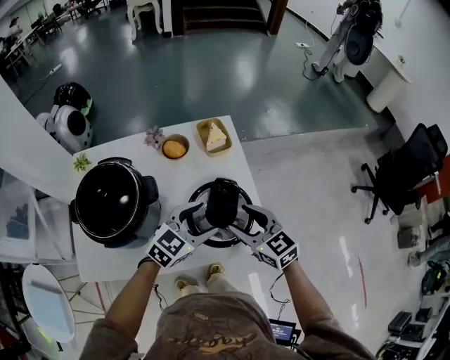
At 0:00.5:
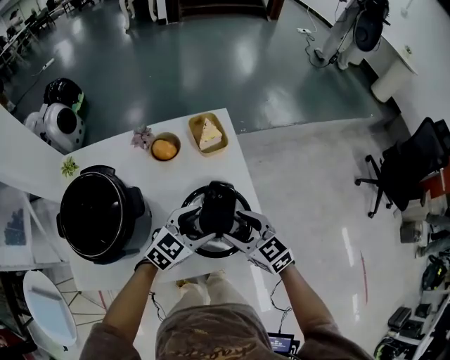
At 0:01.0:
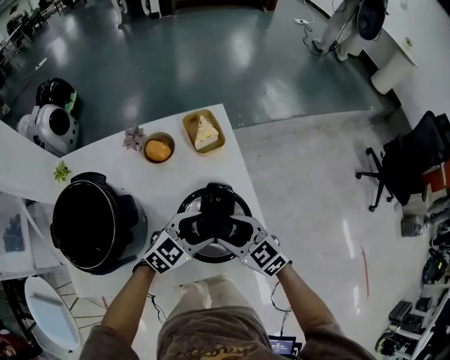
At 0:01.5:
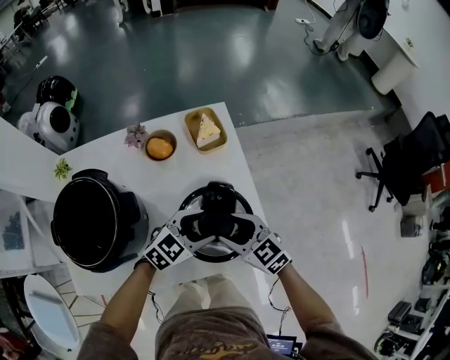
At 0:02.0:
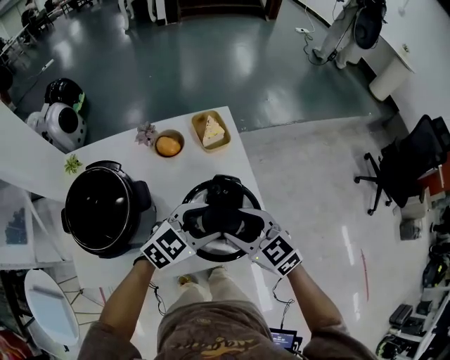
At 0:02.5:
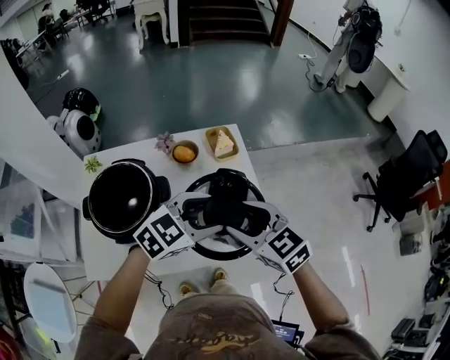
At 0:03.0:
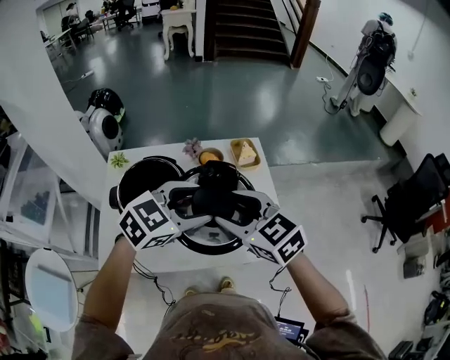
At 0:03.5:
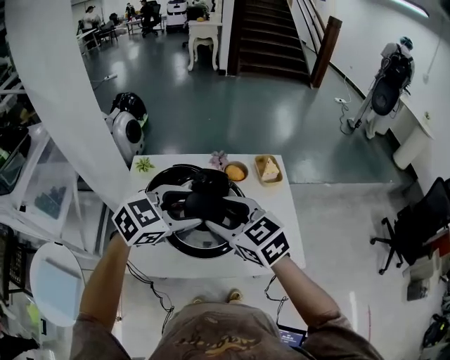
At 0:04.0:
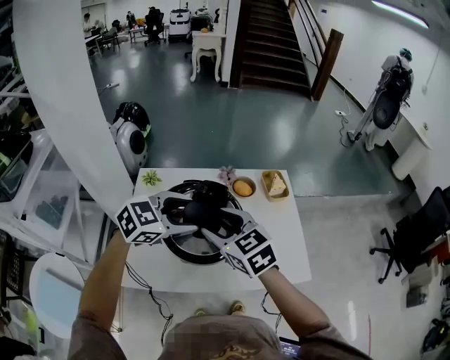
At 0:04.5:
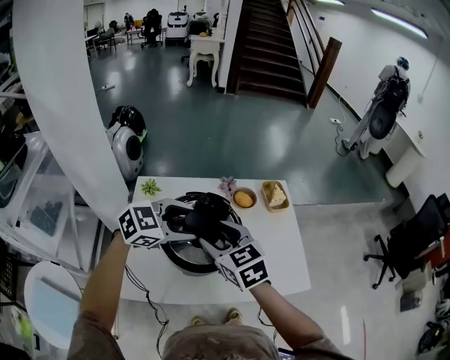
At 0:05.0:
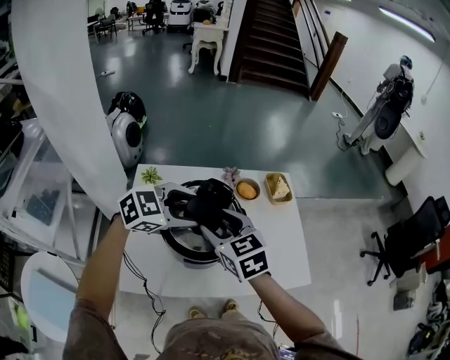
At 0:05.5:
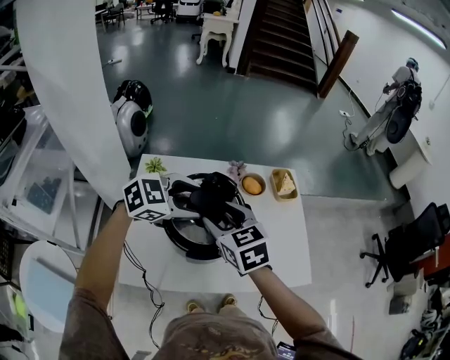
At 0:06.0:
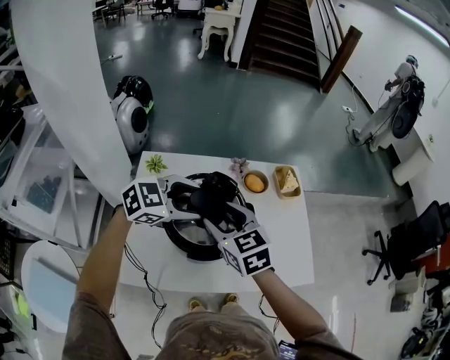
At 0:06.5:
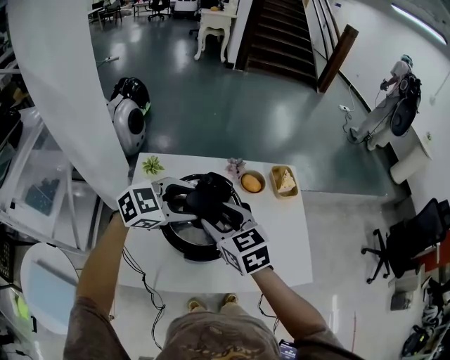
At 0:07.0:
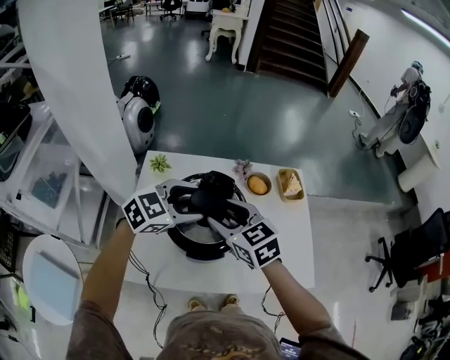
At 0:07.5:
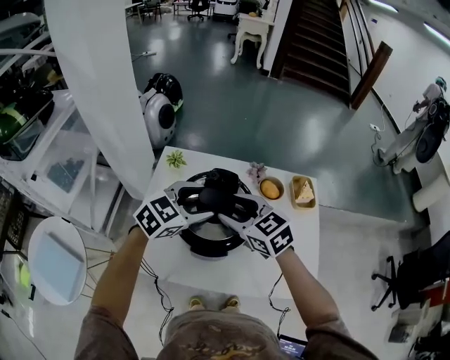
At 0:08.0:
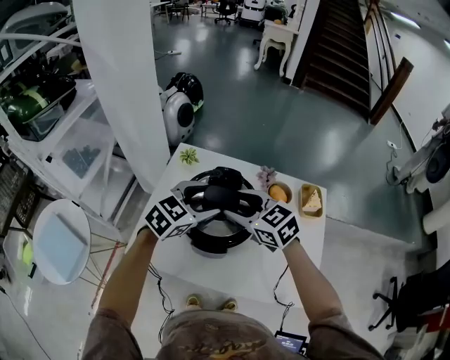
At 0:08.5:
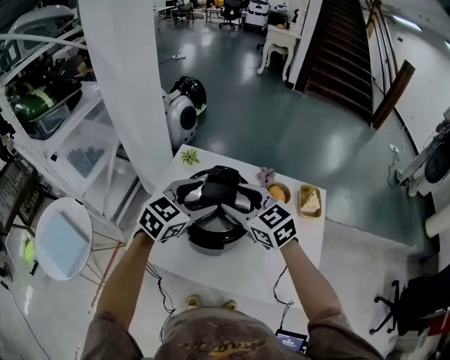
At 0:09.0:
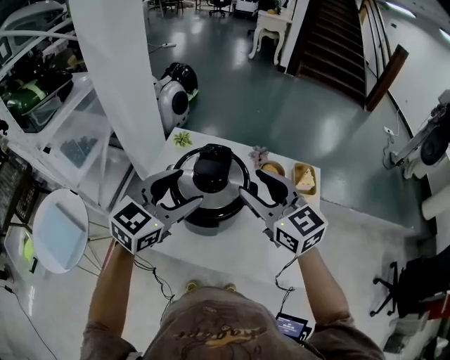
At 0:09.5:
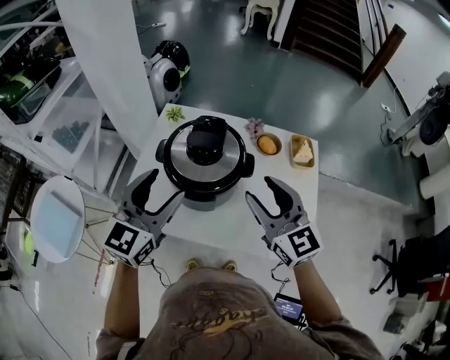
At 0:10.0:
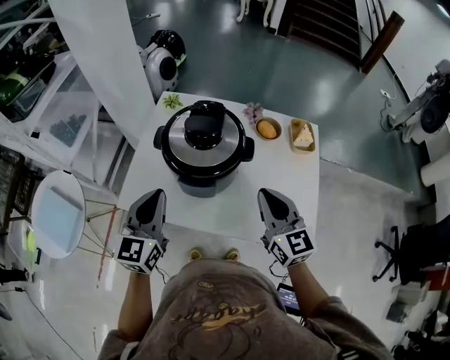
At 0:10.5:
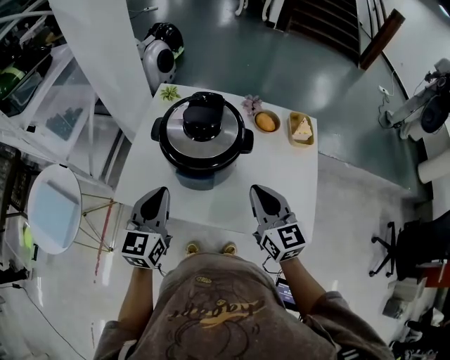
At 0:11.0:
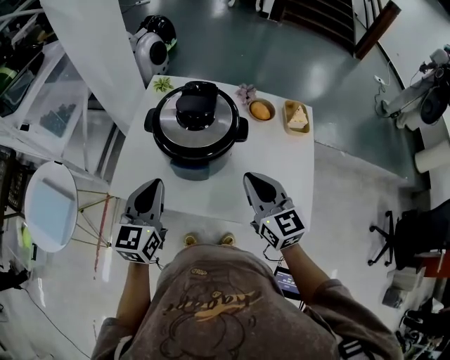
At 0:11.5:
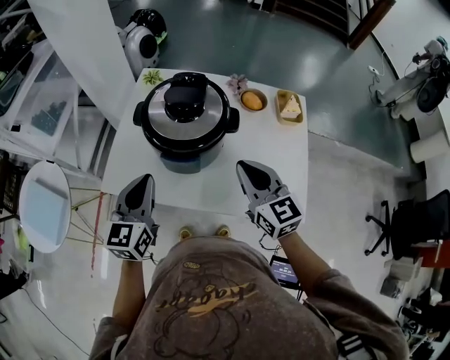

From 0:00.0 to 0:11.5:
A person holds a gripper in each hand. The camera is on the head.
From 0:00.0 to 0:02.0: The left gripper goes downward and returns, roughly 10 cm each way. The right gripper reaches some 10 cm downward, then returns.
From 0:02.0 to 0:04.0: The two grippers go some 30 cm to the left and upward.
From 0:04.0 to 0:06.0: The left gripper changes place by some 10 cm; the right gripper shifts by approximately 10 cm.
From 0:06.0 to 0:07.5: The right gripper swivels some 20 degrees. Meanwhile the left gripper turns by roughly 30 degrees.
From 0:07.5 to 0:09.5: The right gripper heads backward, to the right and upward, covering some 15 cm, and swivels about 30 degrees. The left gripper heads backward, to the left and upward, covering approximately 15 cm, and changes its angle by roughly 40 degrees.
From 0:09.5 to 0:11.5: The two grippers go about 10 cm downward. The right gripper closes its fingers. The left gripper closes up.

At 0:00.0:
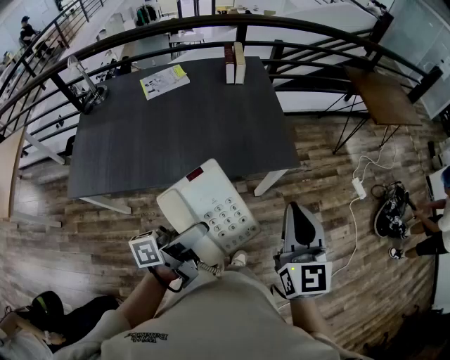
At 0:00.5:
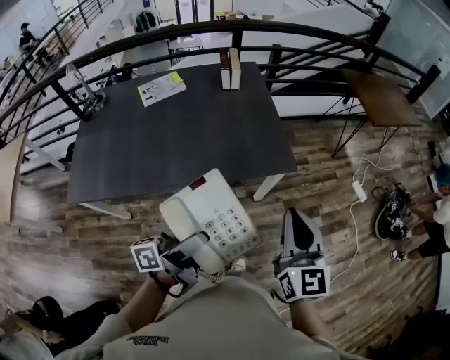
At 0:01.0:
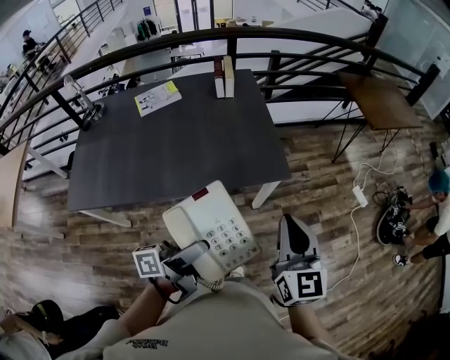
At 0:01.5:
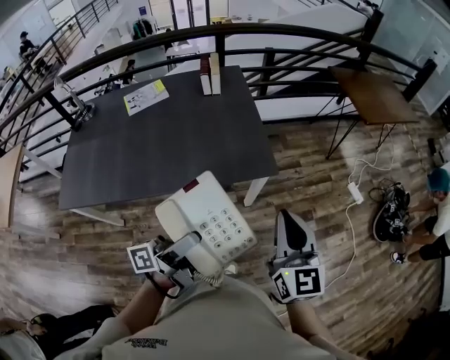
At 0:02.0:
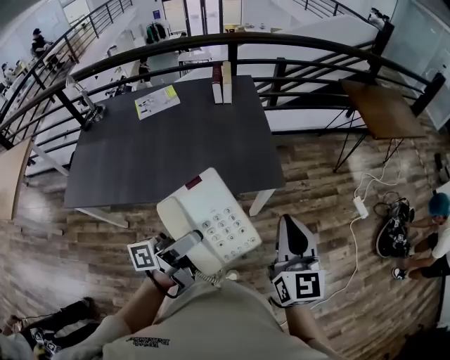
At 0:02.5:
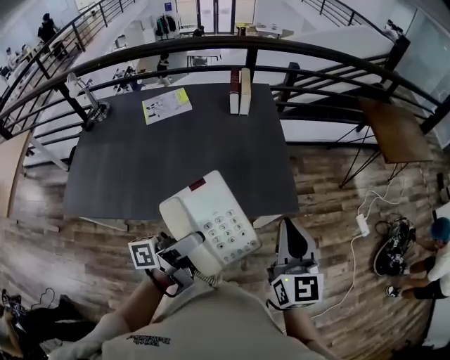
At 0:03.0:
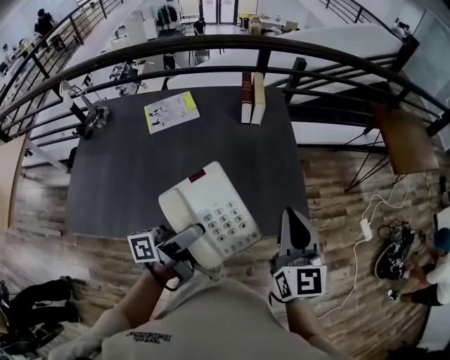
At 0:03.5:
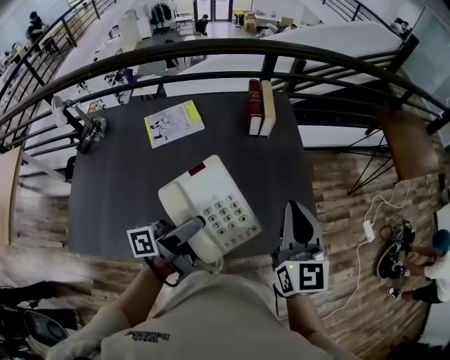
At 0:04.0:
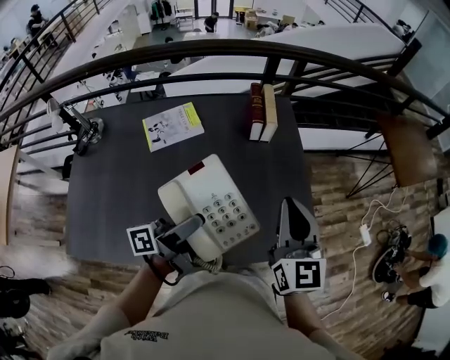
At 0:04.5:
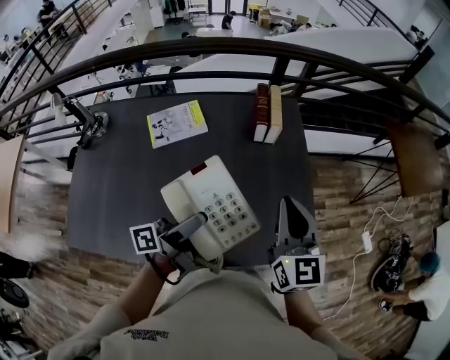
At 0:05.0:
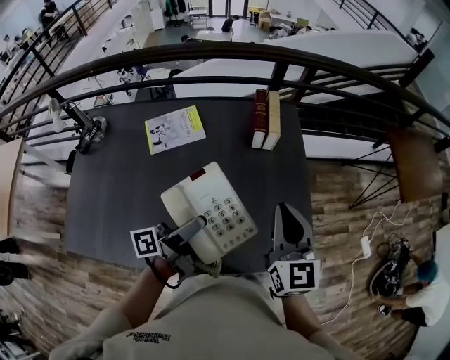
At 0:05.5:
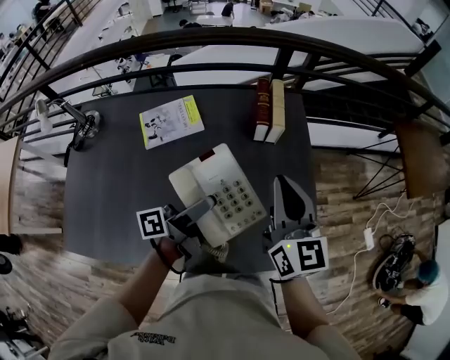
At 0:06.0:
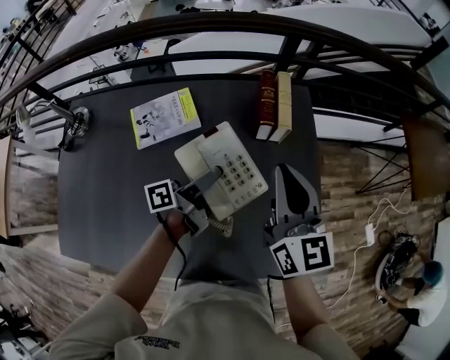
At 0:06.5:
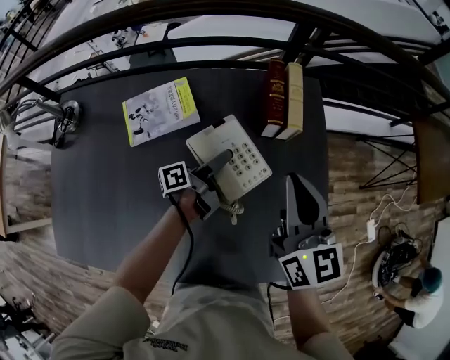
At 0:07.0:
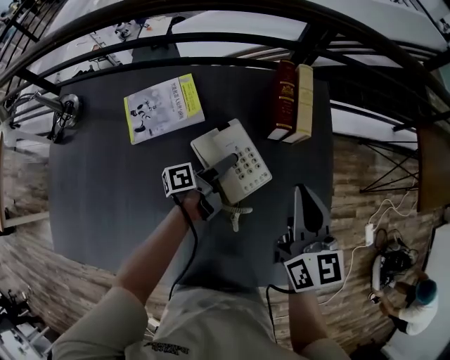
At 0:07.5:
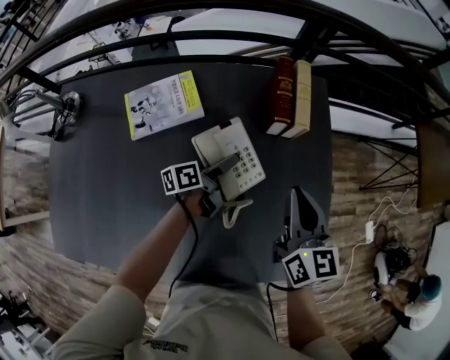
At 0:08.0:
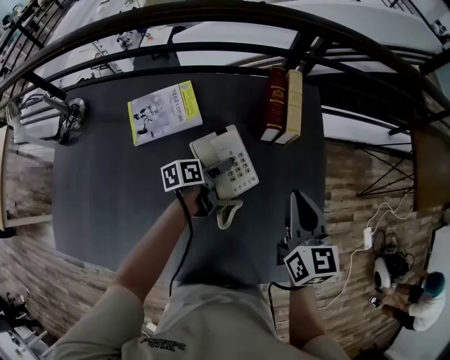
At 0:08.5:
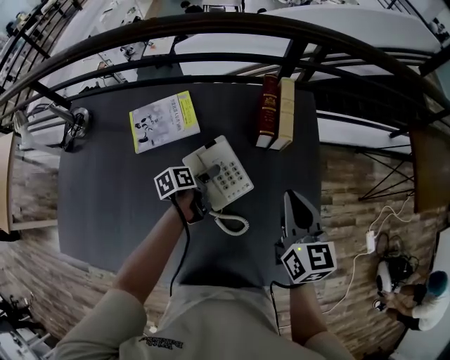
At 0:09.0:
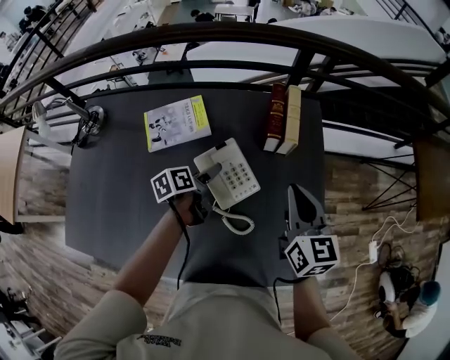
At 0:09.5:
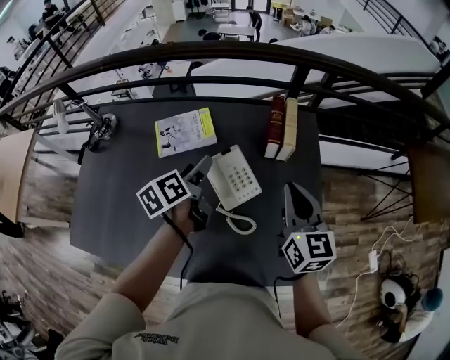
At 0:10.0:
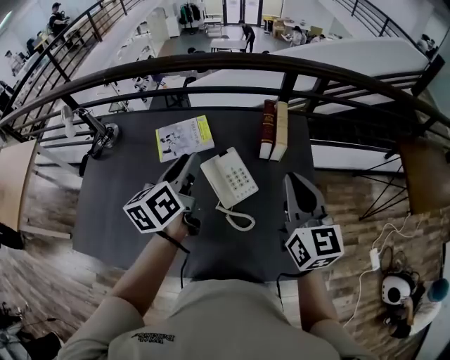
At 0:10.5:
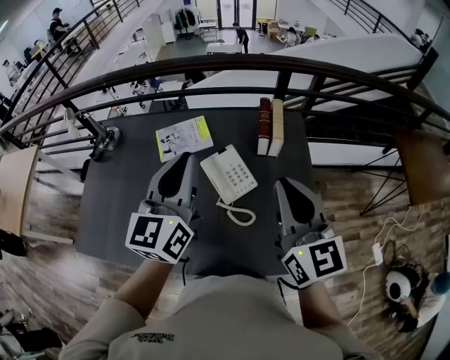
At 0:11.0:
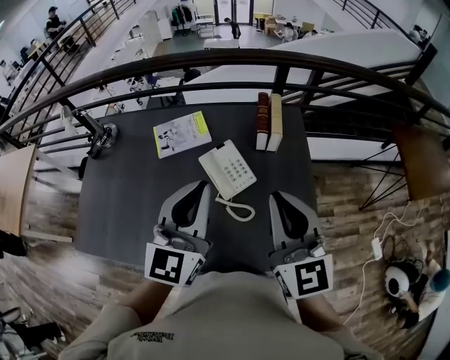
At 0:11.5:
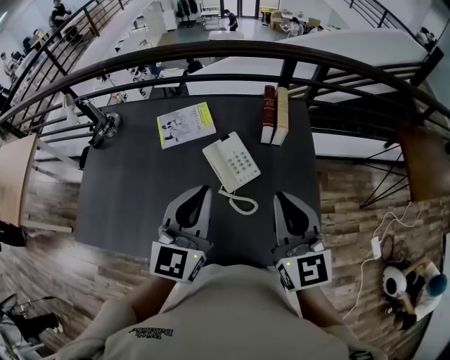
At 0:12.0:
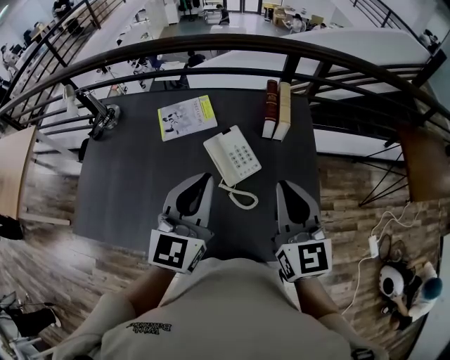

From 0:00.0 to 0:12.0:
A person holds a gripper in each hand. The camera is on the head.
From 0:00.0 to 0:02.0: The two grippers go approximately 10 cm to the right and forward.
From 0:02.0 to 0:04.0: The two grippers travel together, forward and to the left, roughly 40 cm.
From 0:04.0 to 0:06.0: The right gripper travels forward by some 15 cm; the left gripper shifts approximately 25 cm forward and downward.
From 0:06.0 to 0:08.0: The right gripper is displaced downward and to the right by about 10 cm. Meanwhile the left gripper goes approximately 15 cm downward, and points its fingers about 40 degrees further downward.
From 0:08.0 to 0:10.0: The right gripper shifts some 15 cm upward; the left gripper shifts about 35 cm upward, turns by roughly 40 degrees, and closes its fingers.
From 0:10.0 to 0:12.0: The left gripper heads backward, covering roughly 15 cm, and rotates roughly 40 degrees; the right gripper travels backward by roughly 10 cm.

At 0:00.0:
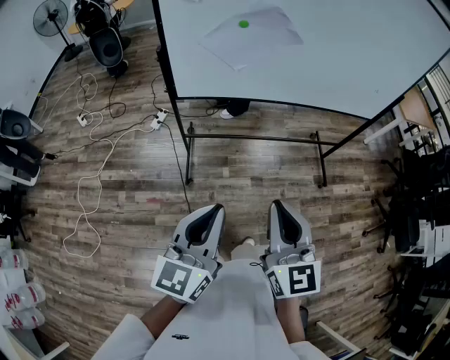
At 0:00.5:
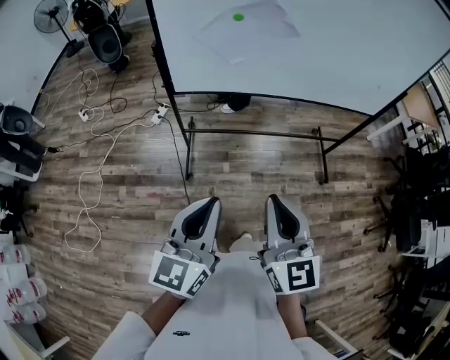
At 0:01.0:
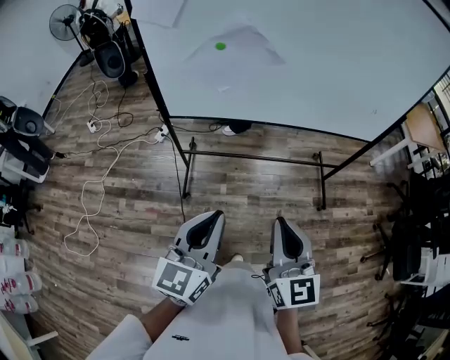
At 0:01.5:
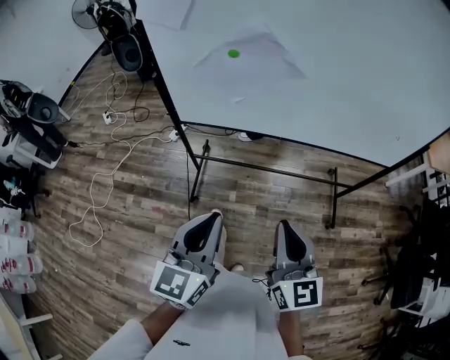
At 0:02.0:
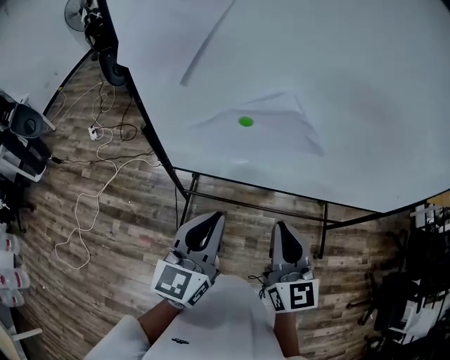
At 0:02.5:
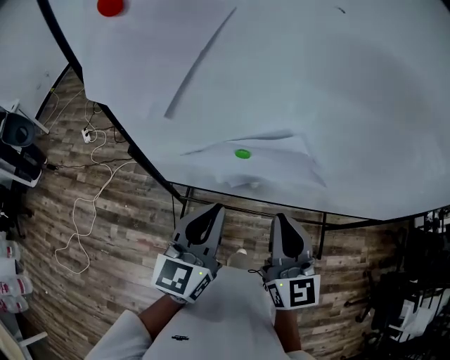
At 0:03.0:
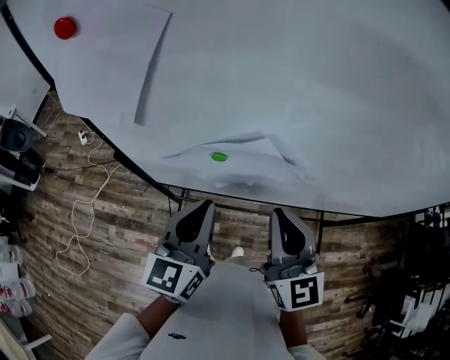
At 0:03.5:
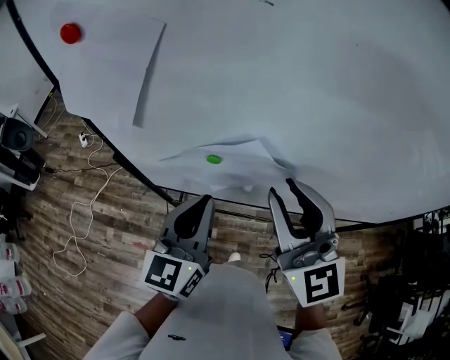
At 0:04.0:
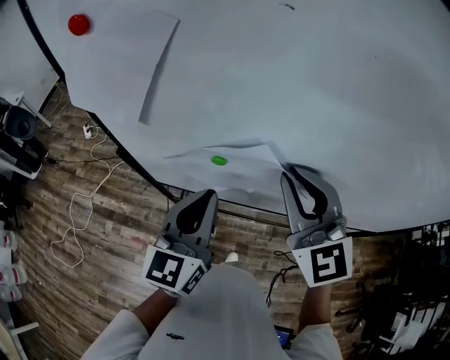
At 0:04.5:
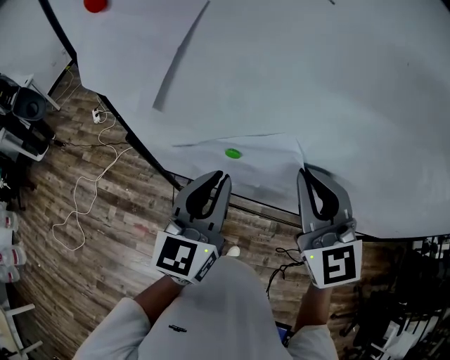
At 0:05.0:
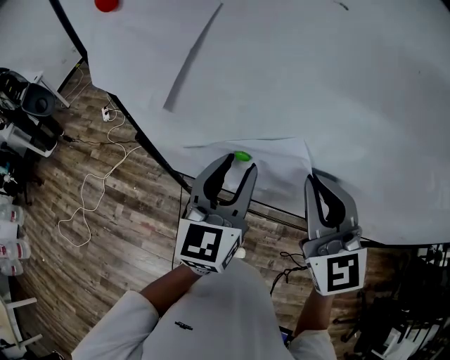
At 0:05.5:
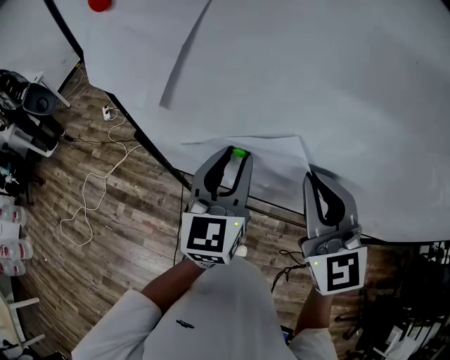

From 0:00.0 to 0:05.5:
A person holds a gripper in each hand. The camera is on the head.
From 0:00.0 to 0:02.0: The grippers both shift forward by roughly 35 cm.
From 0:02.0 to 0:03.5: The right gripper travels upward and forward by approximately 20 cm, swivels some 30 degrees, and opens up. The left gripper shifts some 10 cm forward.
From 0:03.5 to 0:05.5: The right gripper closes up. Meanwhile the left gripper is displaced forward by about 5 cm, and opens its fingers.
